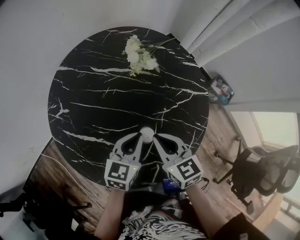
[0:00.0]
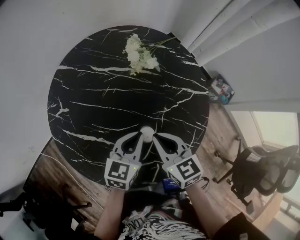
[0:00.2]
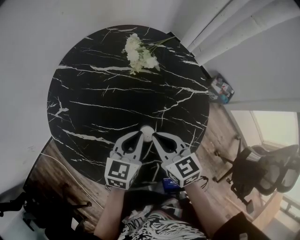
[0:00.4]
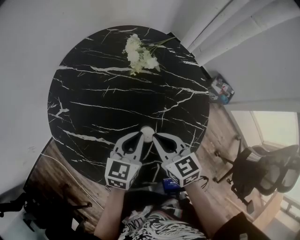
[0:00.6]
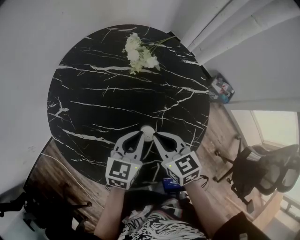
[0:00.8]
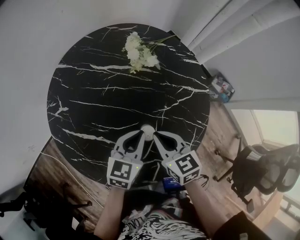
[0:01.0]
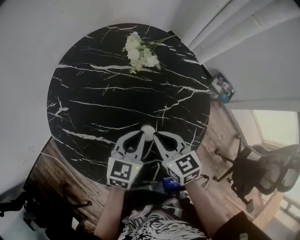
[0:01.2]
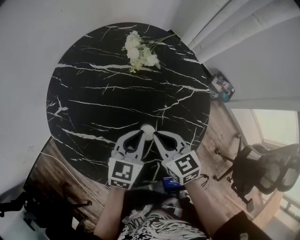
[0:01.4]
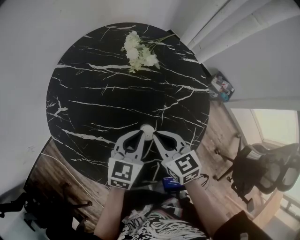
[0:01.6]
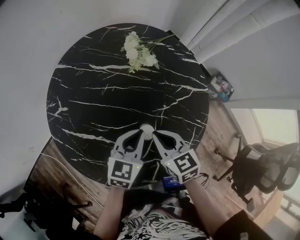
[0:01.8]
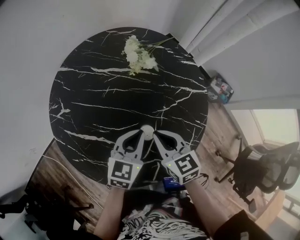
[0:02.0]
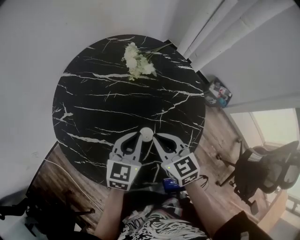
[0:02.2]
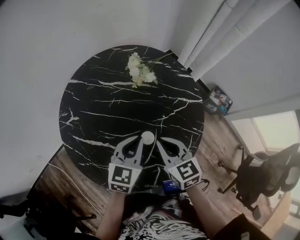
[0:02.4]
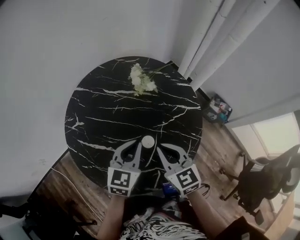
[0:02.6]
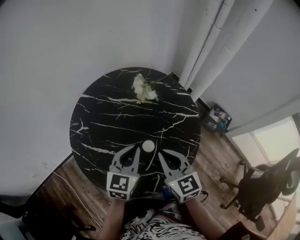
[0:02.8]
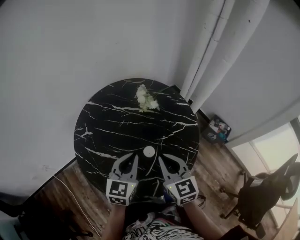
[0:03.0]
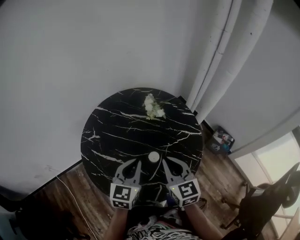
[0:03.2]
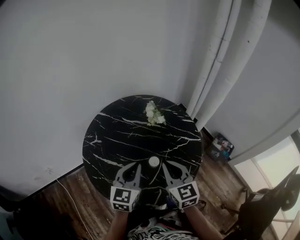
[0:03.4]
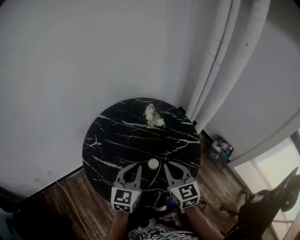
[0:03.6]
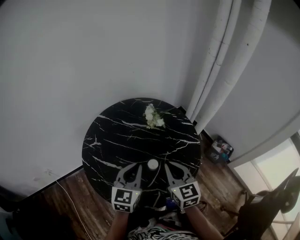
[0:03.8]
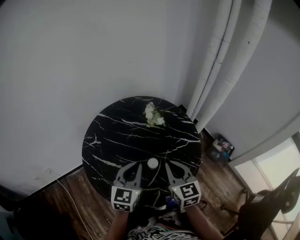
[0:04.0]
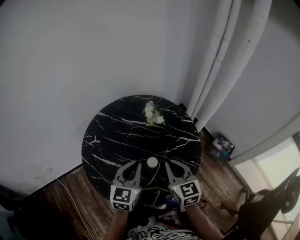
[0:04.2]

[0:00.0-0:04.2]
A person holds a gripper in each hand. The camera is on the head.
0:00.0 to 0:01.4: The grippers make only small movements.
0:01.4 to 0:02.8: The two grippers go about 10 cm upward. The right gripper swivels about 20 degrees.
0:02.8 to 0:04.2: The left gripper moves approximately 5 cm.

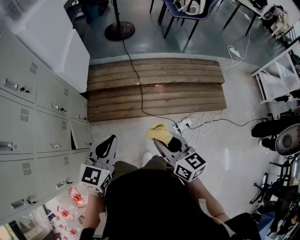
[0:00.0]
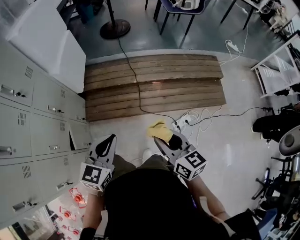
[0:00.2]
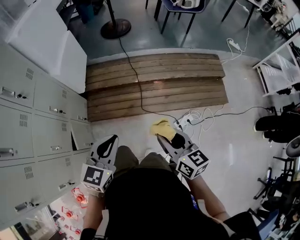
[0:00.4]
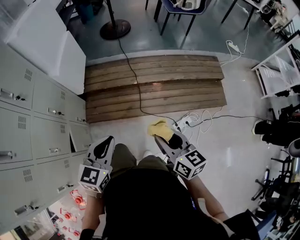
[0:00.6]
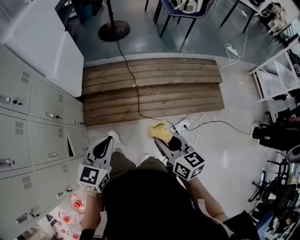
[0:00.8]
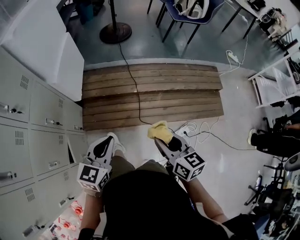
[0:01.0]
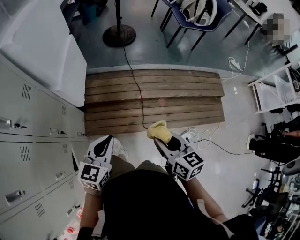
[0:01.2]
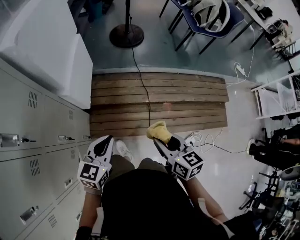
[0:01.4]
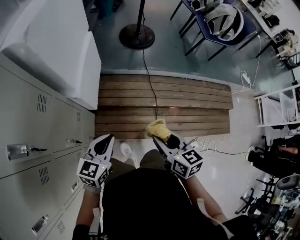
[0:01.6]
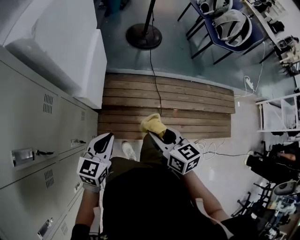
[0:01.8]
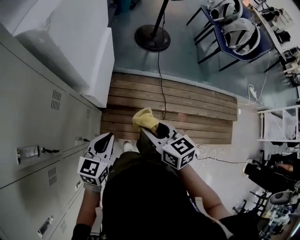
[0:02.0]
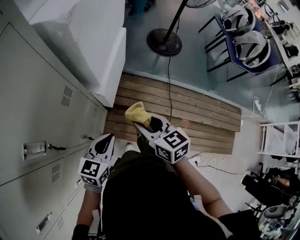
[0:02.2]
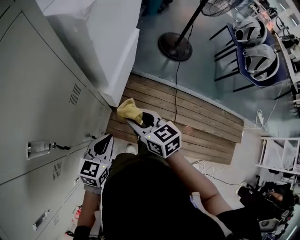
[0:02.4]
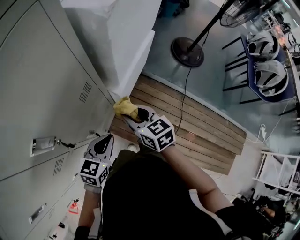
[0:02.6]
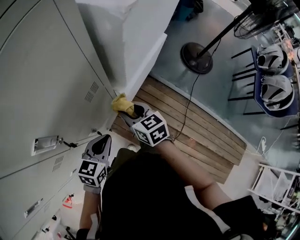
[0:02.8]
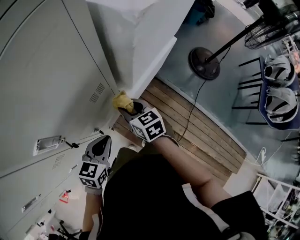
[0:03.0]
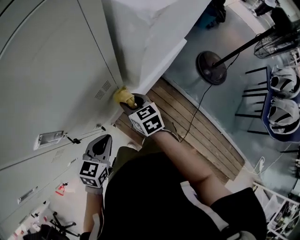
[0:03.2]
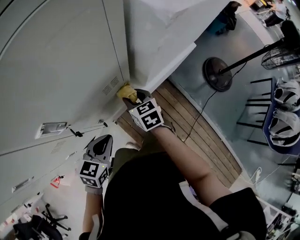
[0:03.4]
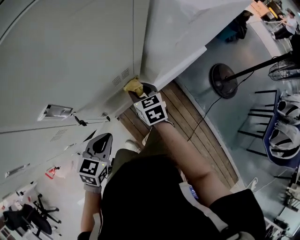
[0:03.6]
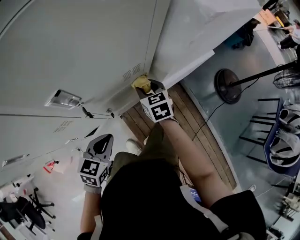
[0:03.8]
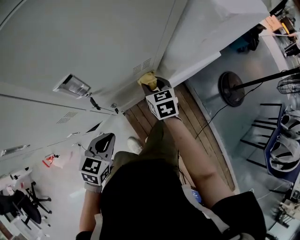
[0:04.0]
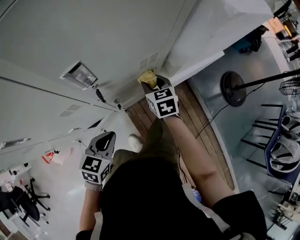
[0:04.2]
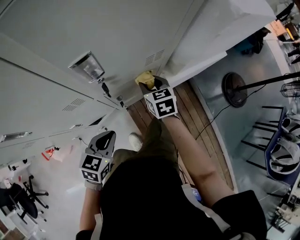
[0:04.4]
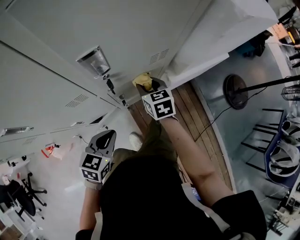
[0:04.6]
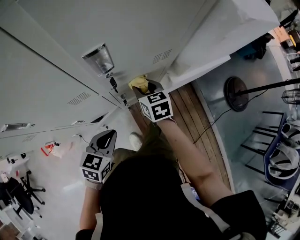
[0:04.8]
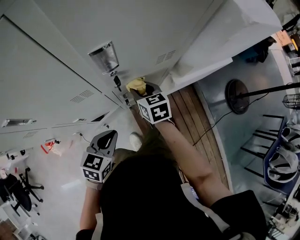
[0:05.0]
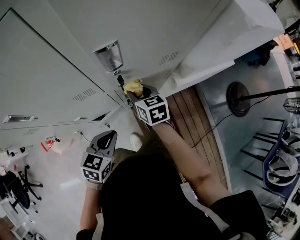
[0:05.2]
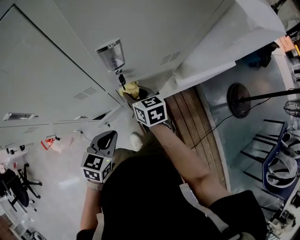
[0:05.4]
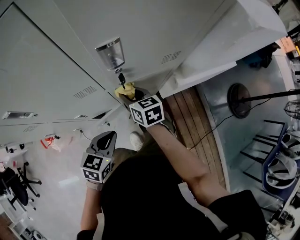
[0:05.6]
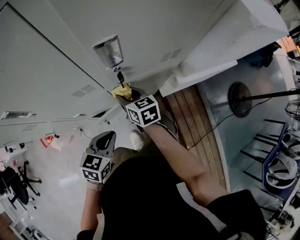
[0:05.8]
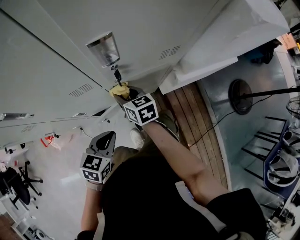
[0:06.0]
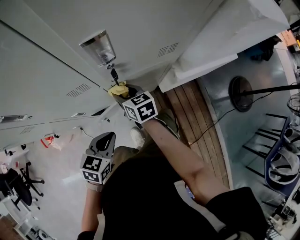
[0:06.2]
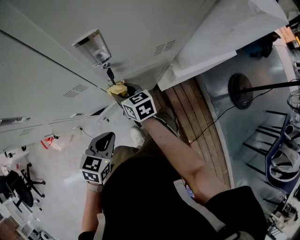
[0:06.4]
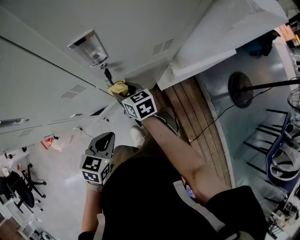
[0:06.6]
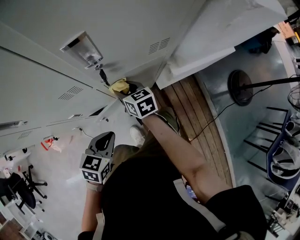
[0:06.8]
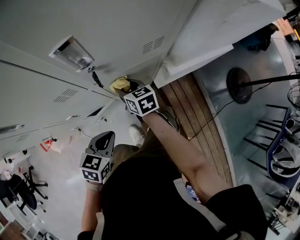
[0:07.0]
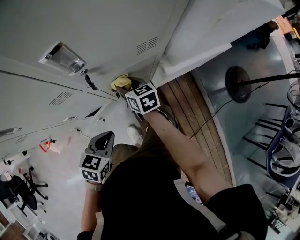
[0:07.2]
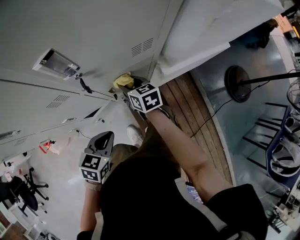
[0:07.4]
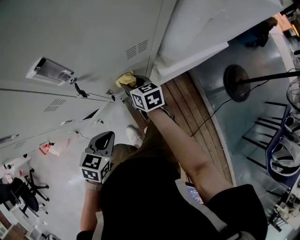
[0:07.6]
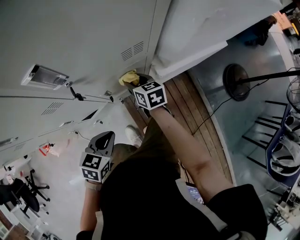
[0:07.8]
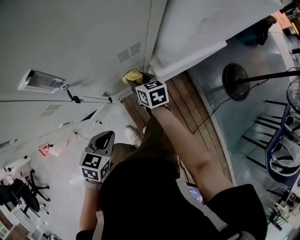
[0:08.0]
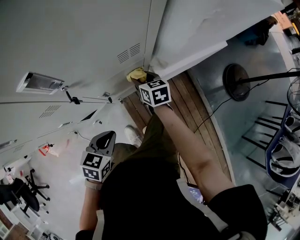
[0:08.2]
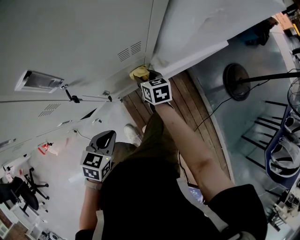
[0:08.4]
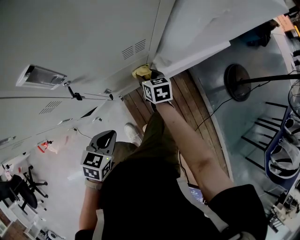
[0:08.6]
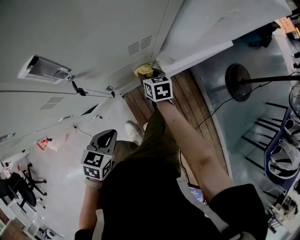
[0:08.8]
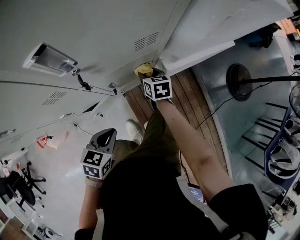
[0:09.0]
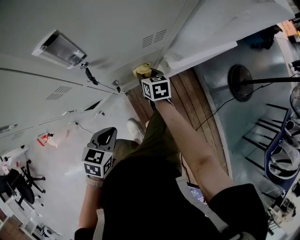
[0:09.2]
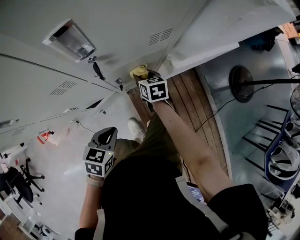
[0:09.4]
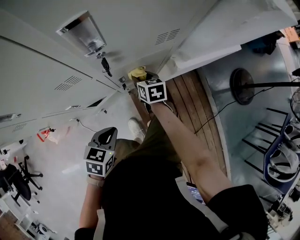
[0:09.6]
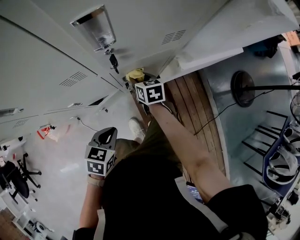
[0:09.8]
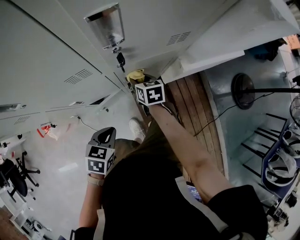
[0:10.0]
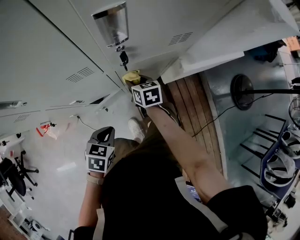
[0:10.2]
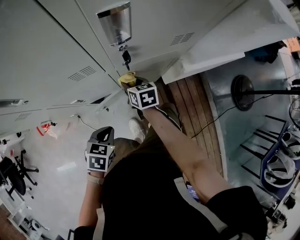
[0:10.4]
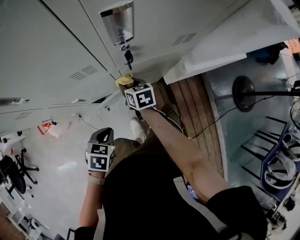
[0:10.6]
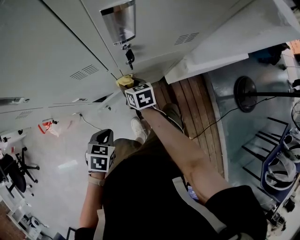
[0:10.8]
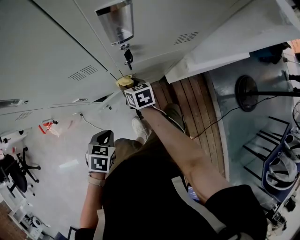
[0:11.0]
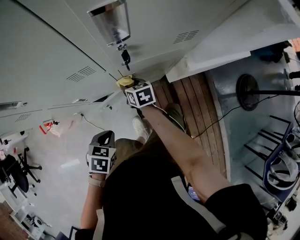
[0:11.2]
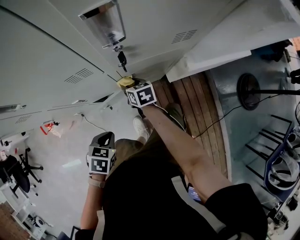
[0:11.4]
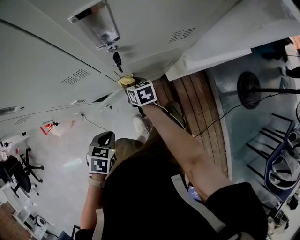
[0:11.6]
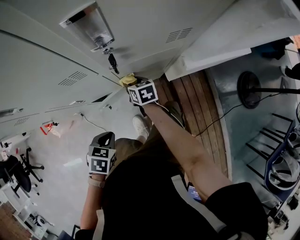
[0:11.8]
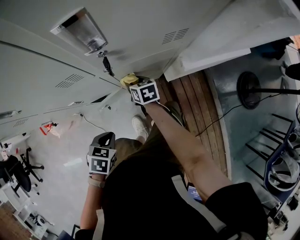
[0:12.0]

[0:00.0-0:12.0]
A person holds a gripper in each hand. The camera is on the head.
0:00.0 to 0:01.6: The two grippers travel together, forward and to the left, about 40 cm.
0:01.6 to 0:03.0: The left gripper shifts by some 20 cm, and swivels about 40 degrees; the right gripper ends up some 40 cm from where it was, and changes its angle by roughly 50 degrees.
0:03.0 to 0:04.4: The right gripper heads to the left, covering about 10 cm; the left gripper is displaced backward and to the left by about 15 cm, and swivels approximately 20 degrees.
0:04.4 to 0:06.0: The right gripper is displaced to the left by some 15 cm, and rotates about 20 degrees.
0:06.0 to 0:07.6: The right gripper shifts some 15 cm to the right, while the left gripper heads to the right, covering about 5 cm.
0:07.6 to 0:09.0: The right gripper travels downward and to the right by roughly 10 cm.
0:09.0 to 0:10.4: The left gripper moves to the left, roughly 10 cm. Meanwhile the right gripper is displaced to the left by about 15 cm.
0:10.4 to 0:12.0: The right gripper shifts approximately 5 cm downward.

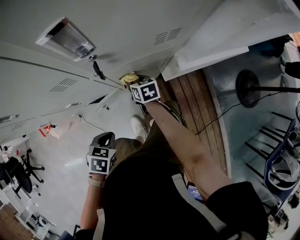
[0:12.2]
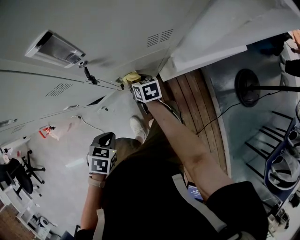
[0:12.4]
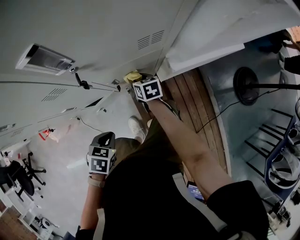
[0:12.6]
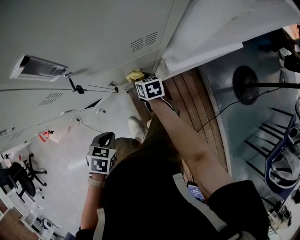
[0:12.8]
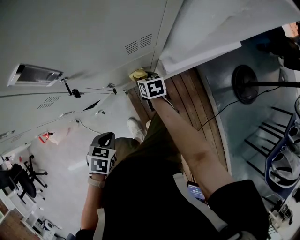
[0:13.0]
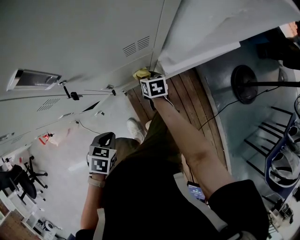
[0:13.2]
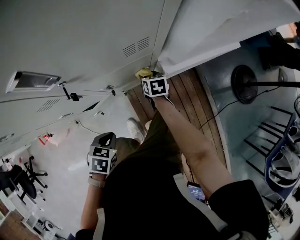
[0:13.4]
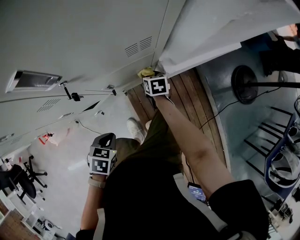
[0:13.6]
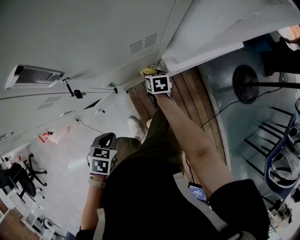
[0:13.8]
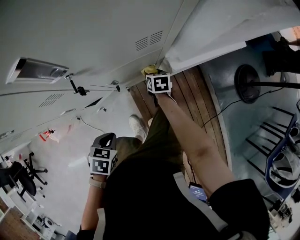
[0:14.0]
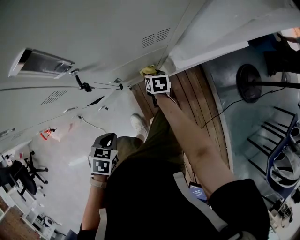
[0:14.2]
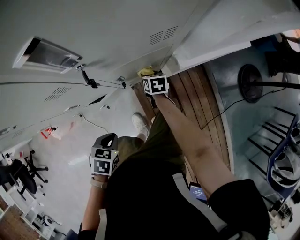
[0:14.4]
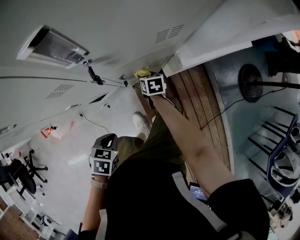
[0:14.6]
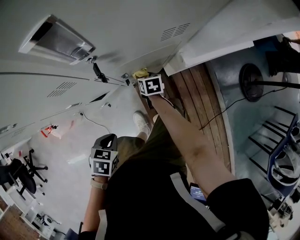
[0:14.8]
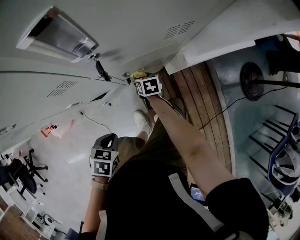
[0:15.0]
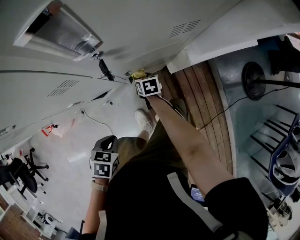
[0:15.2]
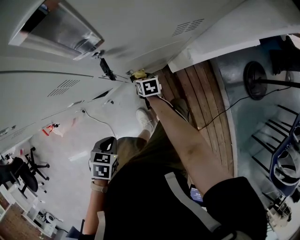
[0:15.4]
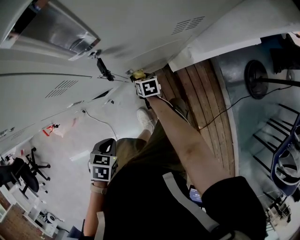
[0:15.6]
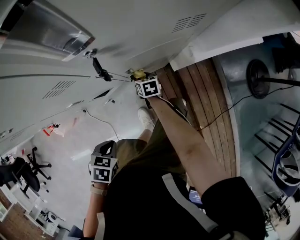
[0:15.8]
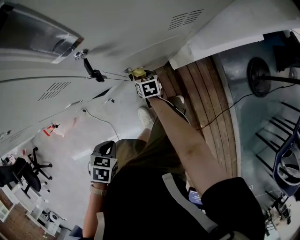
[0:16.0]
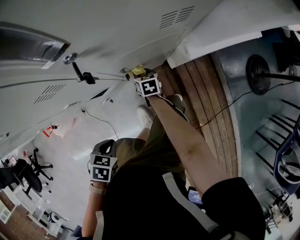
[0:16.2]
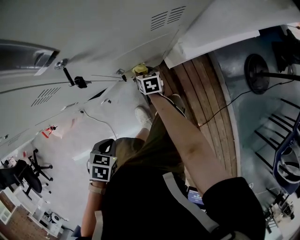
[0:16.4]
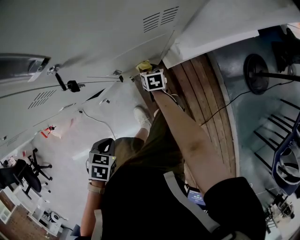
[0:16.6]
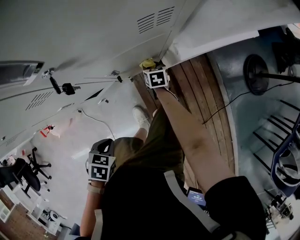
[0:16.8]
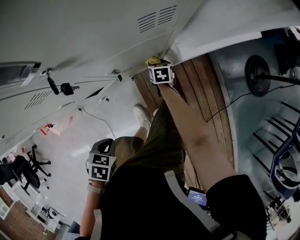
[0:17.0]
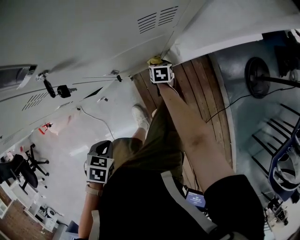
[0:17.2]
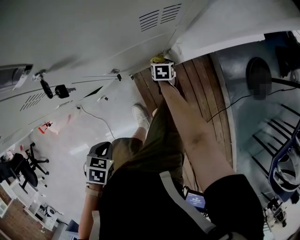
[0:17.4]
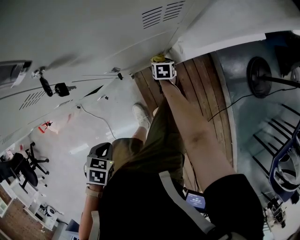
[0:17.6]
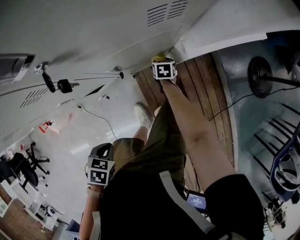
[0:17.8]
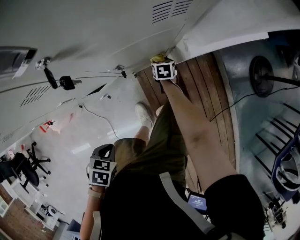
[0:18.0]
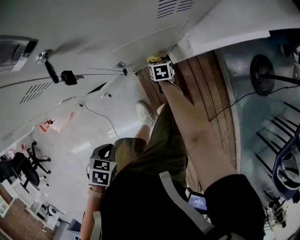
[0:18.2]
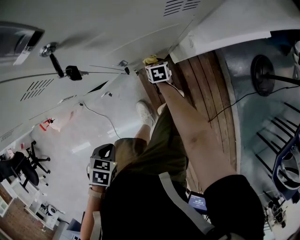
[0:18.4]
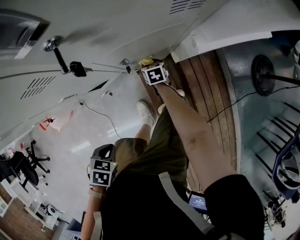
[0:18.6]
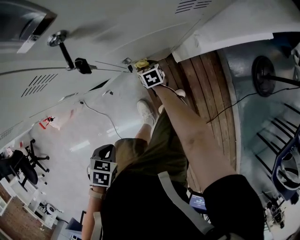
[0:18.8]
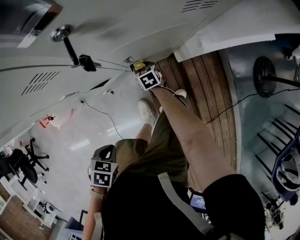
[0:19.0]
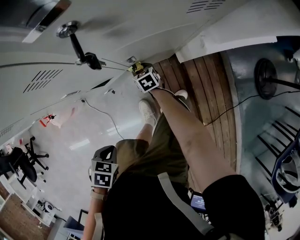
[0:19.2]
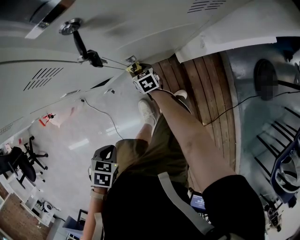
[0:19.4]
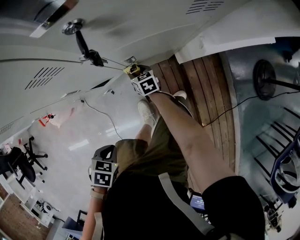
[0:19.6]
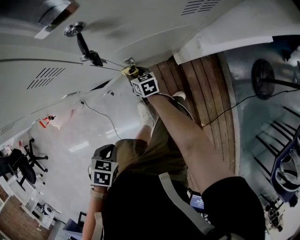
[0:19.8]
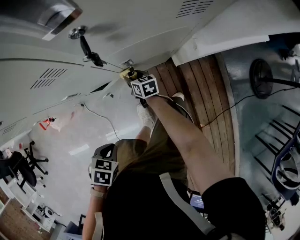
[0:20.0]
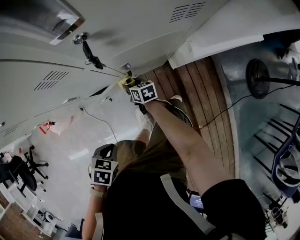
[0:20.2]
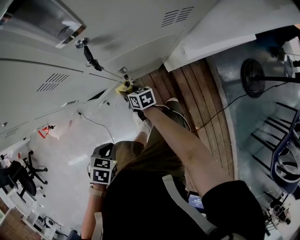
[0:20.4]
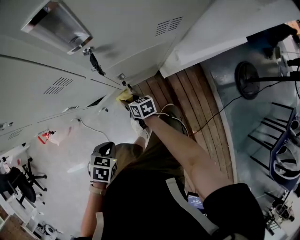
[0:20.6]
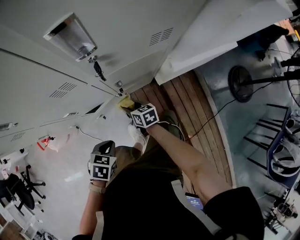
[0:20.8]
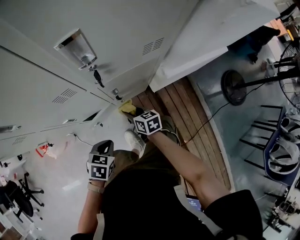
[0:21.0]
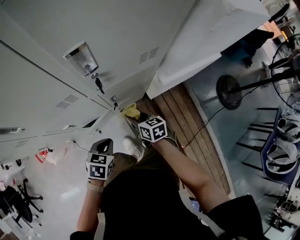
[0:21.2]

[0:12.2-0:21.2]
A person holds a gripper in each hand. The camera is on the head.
0:12.2 to 0:13.8: The left gripper shifts roughly 5 cm to the right. The right gripper is displaced to the right by approximately 15 cm.
0:13.8 to 0:15.2: The right gripper moves to the left, backward and downward, some 15 cm, while the left gripper shifts some 10 cm to the left.
0:15.2 to 0:16.6: The right gripper shifts approximately 5 cm to the right.
0:16.6 to 0:18.2: The right gripper is displaced downward by about 5 cm. The left gripper changes place by about 5 cm.
0:18.2 to 0:19.8: The right gripper changes place by roughly 20 cm, and changes its angle by roughly 20 degrees.
0:19.8 to 0:21.2: The right gripper is displaced upward by some 20 cm. The left gripper ends up approximately 20 cm from where it was, and turns by roughly 20 degrees.
